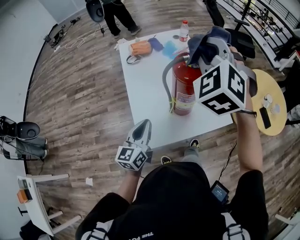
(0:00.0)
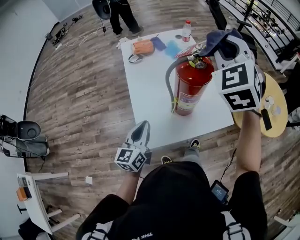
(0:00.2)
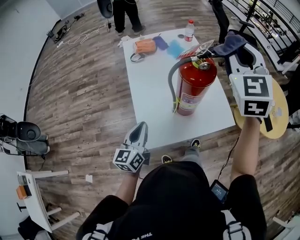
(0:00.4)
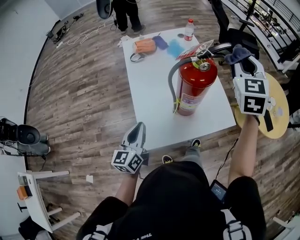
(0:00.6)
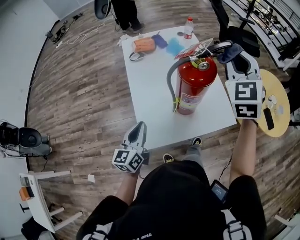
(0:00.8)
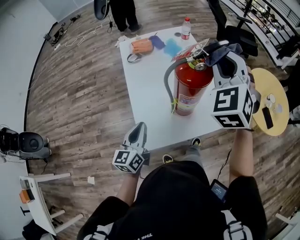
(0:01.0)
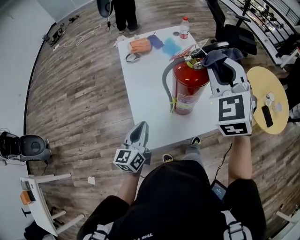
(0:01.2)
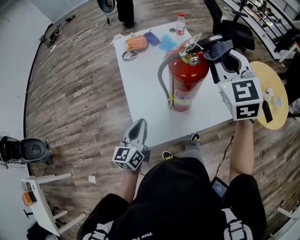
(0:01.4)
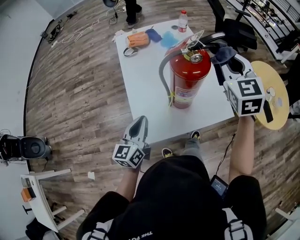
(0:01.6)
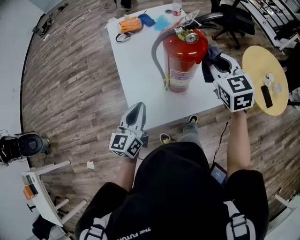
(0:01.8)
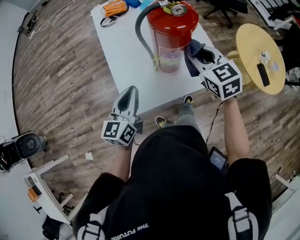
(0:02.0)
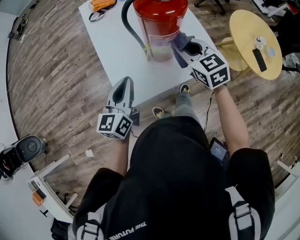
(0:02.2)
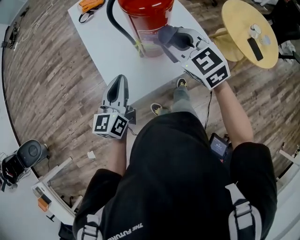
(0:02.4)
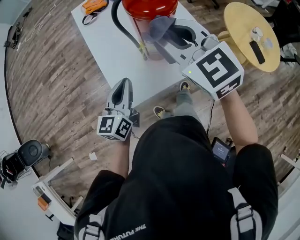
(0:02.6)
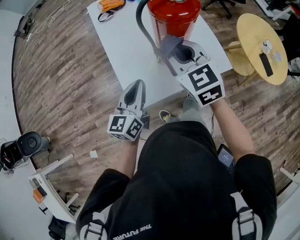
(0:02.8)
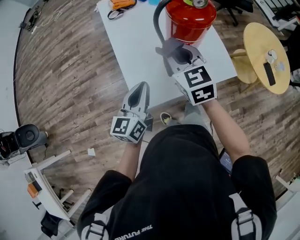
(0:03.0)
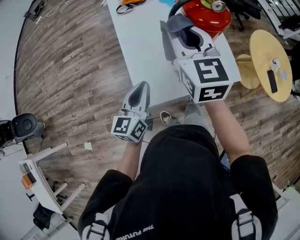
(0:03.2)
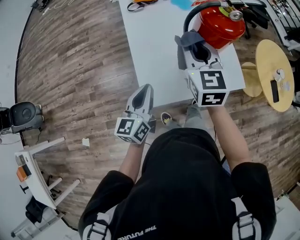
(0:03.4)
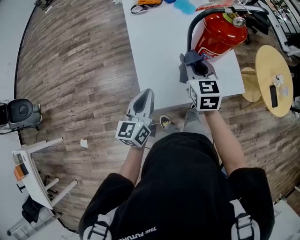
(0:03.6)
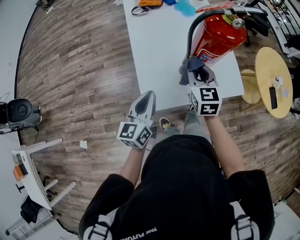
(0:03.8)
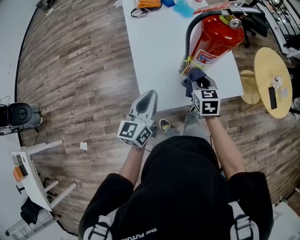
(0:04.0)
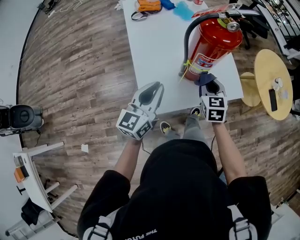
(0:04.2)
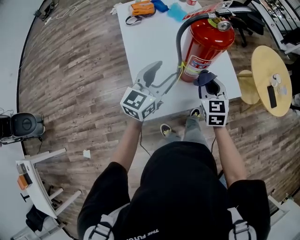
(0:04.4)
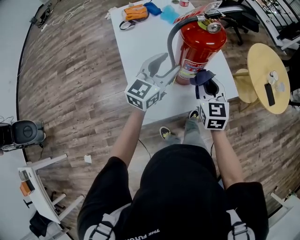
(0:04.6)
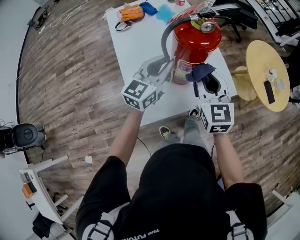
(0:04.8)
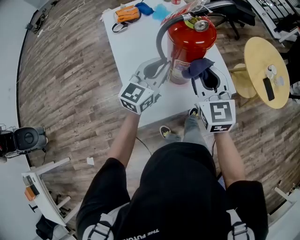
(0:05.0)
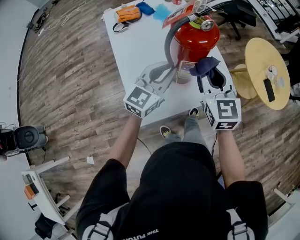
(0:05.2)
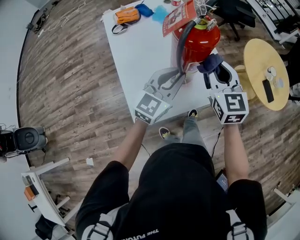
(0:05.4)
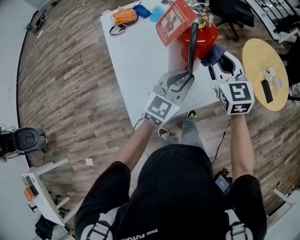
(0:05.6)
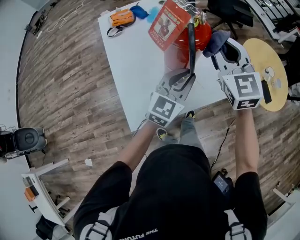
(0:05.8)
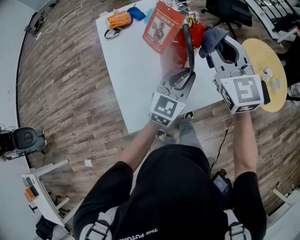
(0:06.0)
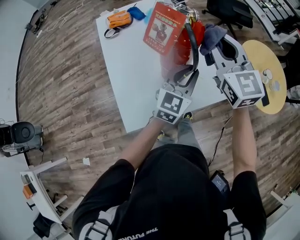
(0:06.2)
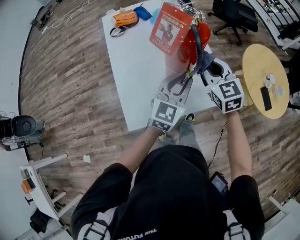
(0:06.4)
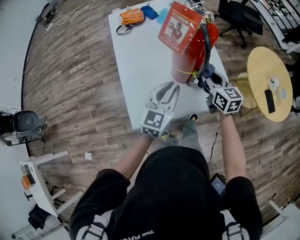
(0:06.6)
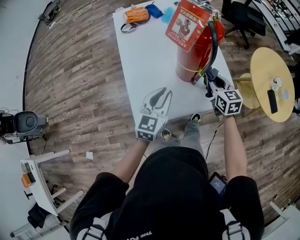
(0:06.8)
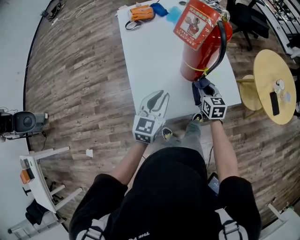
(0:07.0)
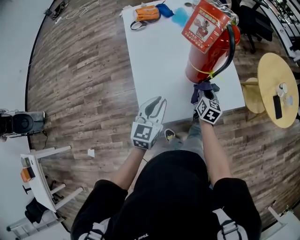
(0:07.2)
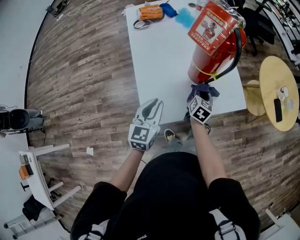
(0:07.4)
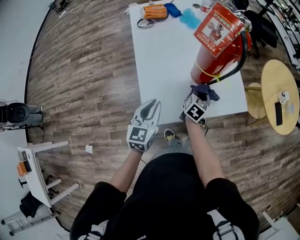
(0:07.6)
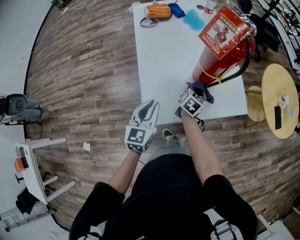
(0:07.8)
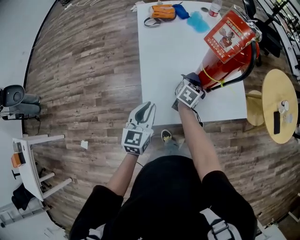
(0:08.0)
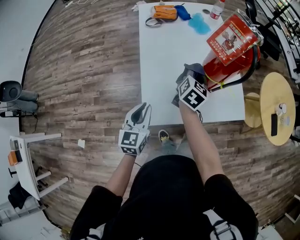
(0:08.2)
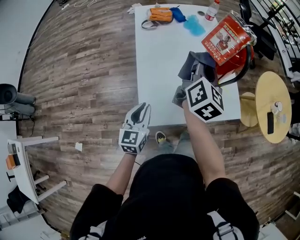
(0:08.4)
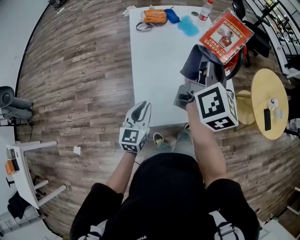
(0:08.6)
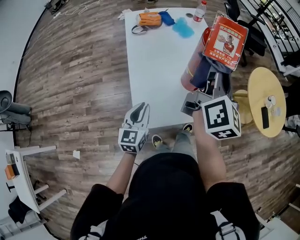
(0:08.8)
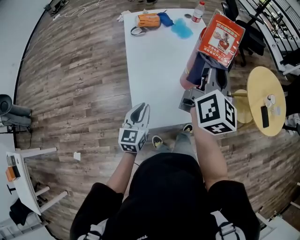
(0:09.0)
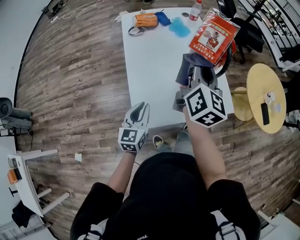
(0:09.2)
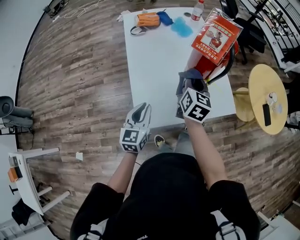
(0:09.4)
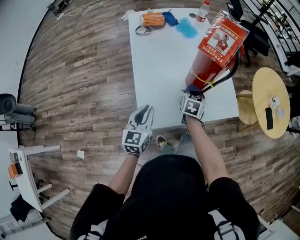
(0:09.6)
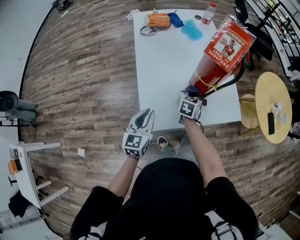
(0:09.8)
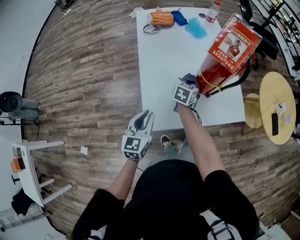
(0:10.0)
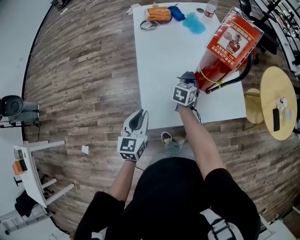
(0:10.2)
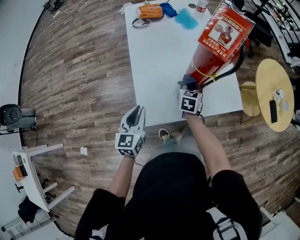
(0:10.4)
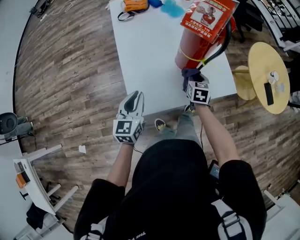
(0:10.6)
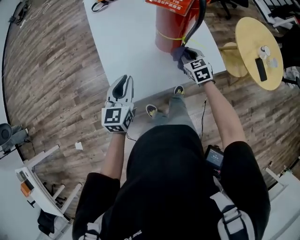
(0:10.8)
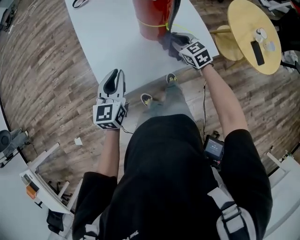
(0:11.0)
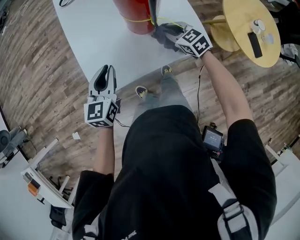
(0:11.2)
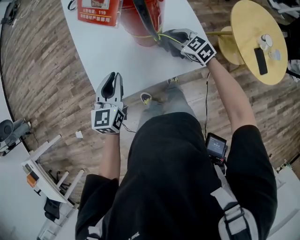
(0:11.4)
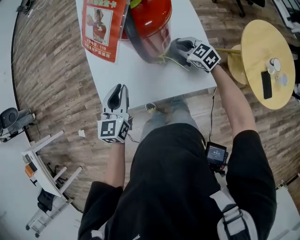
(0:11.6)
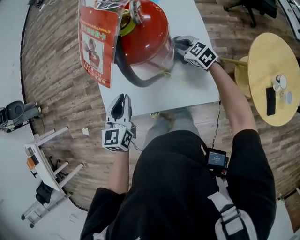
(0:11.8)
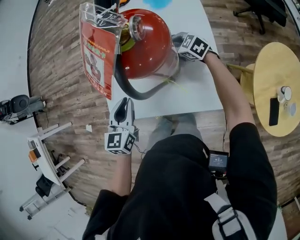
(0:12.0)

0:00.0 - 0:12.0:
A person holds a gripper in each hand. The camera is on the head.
0:00.0 - 0:01.6: The right gripper goes left and right, roughly 15 cm each way, reversing 2 times, and changes its angle by approximately 40 degrees.
0:01.6 - 0:03.0: The right gripper goes up and down, about 20 cm each way, reversing 2 times.
0:03.0 - 0:04.4: The right gripper moves up and down over approximately 25 cm, changing direction 2 times. The left gripper travels forward by roughly 10 cm, changes its angle by about 20 degrees, and opens its fingers.
0:04.4 - 0:06.0: The right gripper goes some 25 cm upward and forward, and swivels about 30 degrees, while the left gripper is displaced to the right and forward by some 20 cm, and closes.
0:06.0 - 0:07.6: The right gripper shifts about 35 cm downward, and turns by about 60 degrees, while the left gripper is displaced to the left, backward and downward by roughly 30 cm, and swivels roughly 30 degrees.
0:07.6 - 0:09.0: The right gripper heads upward, covering approximately 35 cm, and tips its fingers upward by roughly 40 degrees.
0:09.0 - 0:10.4: The right gripper moves downward, some 35 cm, and points its fingers about 50 degrees further downward.
0:10.4 - 0:12.0: The left gripper shifts by about 20 cm. The right gripper ends up approximately 20 cm from where it was, and swivels some 70 degrees.

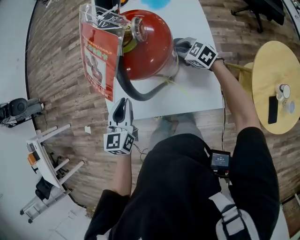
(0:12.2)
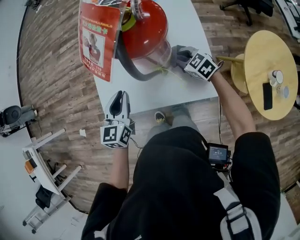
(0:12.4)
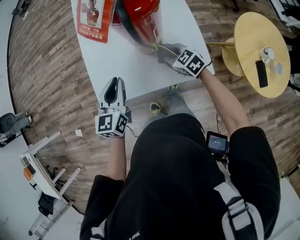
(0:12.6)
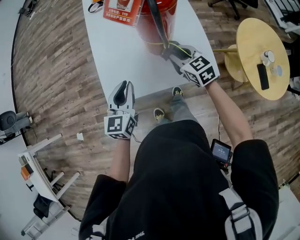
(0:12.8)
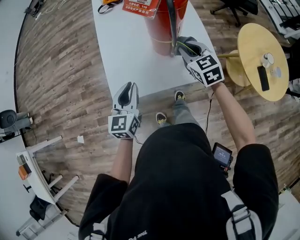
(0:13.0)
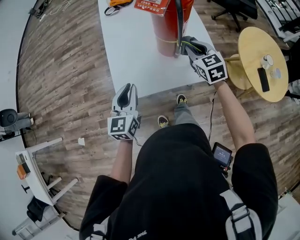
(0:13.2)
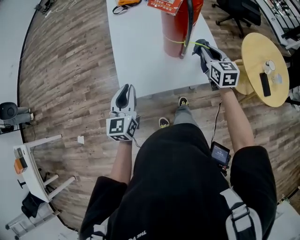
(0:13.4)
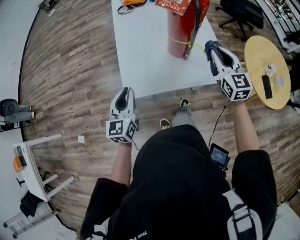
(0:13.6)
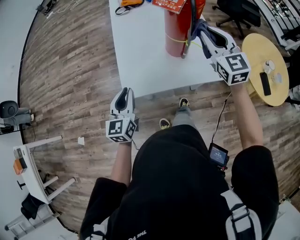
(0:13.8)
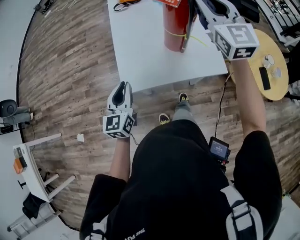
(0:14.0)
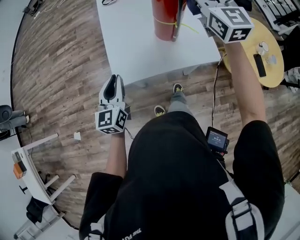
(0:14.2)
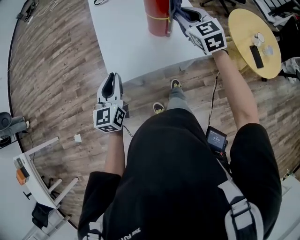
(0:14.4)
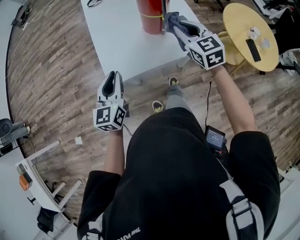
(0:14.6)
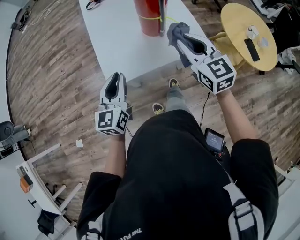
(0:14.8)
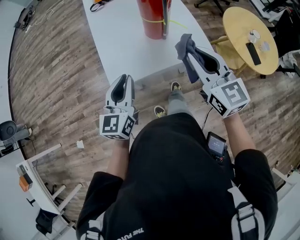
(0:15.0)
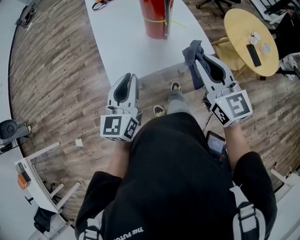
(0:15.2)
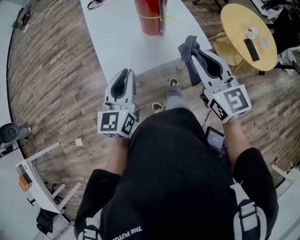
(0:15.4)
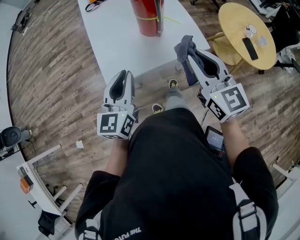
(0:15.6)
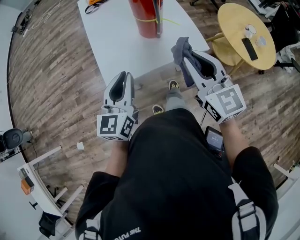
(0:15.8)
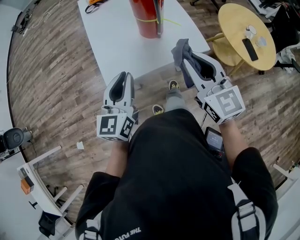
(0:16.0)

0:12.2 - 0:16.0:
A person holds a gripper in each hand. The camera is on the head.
0:12.2 - 0:13.4: The left gripper shifts by roughly 15 cm, while the right gripper moves approximately 25 cm, and turns by roughly 50 degrees.
0:13.4 - 0:14.8: The right gripper heads backward, upward and to the left, covering roughly 20 cm.
0:14.8 - 0:16.0: The right gripper moves backward, some 10 cm. The left gripper heads upward, covering roughly 5 cm.

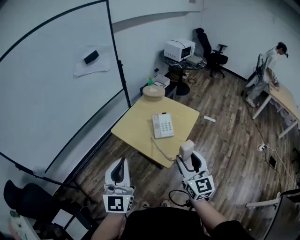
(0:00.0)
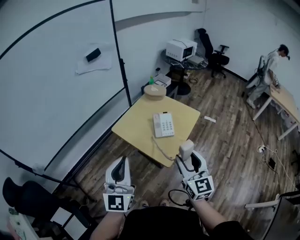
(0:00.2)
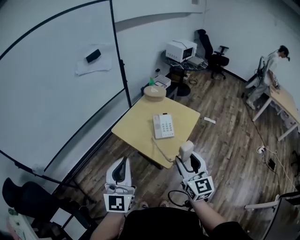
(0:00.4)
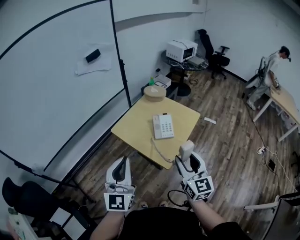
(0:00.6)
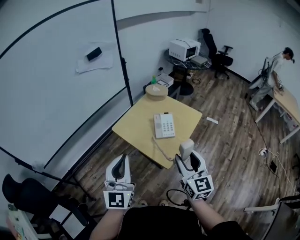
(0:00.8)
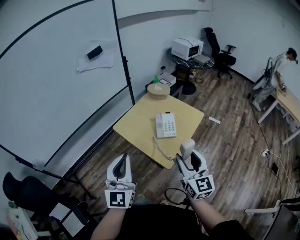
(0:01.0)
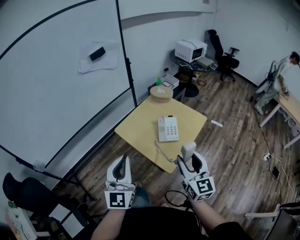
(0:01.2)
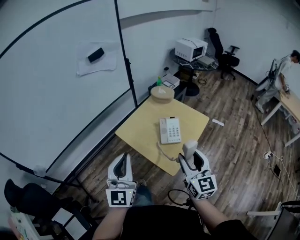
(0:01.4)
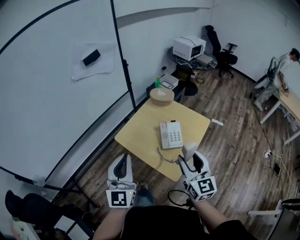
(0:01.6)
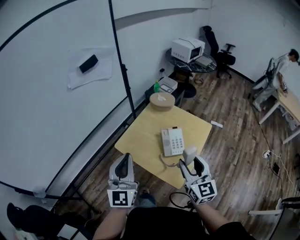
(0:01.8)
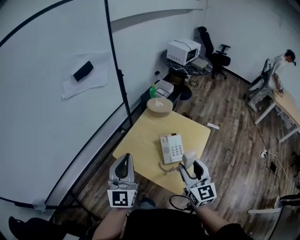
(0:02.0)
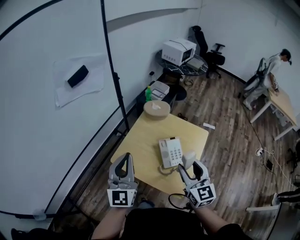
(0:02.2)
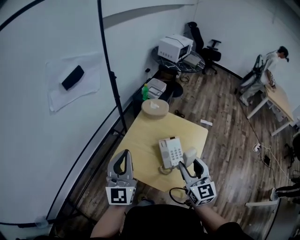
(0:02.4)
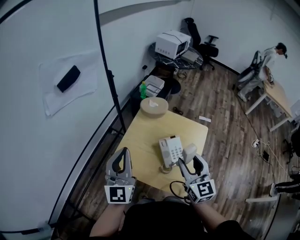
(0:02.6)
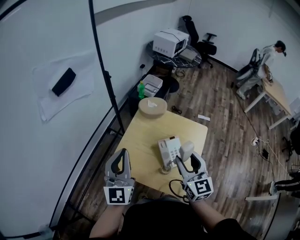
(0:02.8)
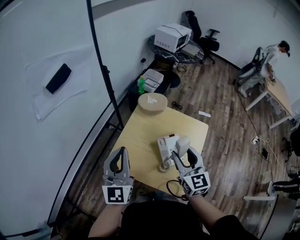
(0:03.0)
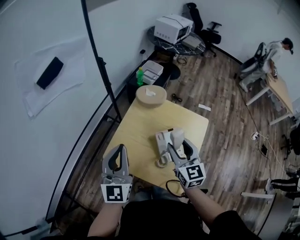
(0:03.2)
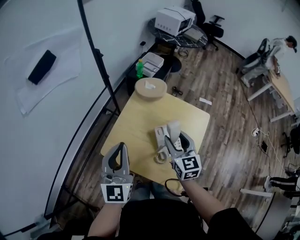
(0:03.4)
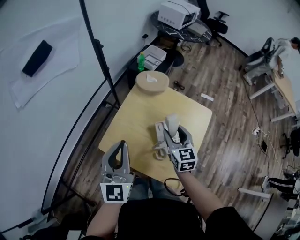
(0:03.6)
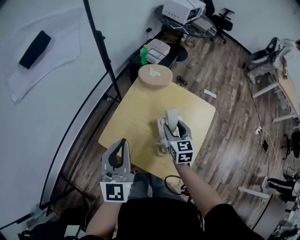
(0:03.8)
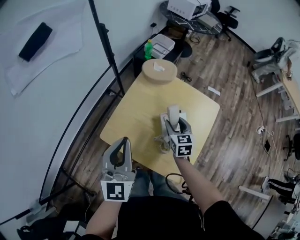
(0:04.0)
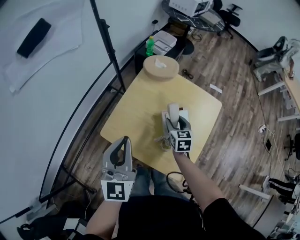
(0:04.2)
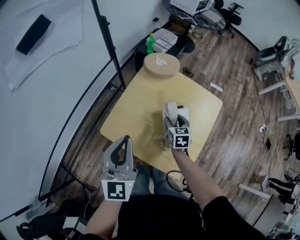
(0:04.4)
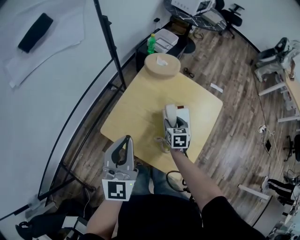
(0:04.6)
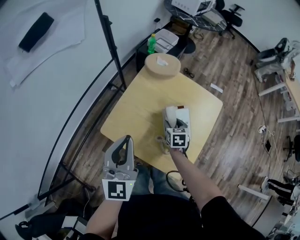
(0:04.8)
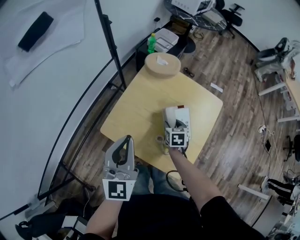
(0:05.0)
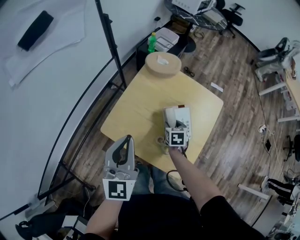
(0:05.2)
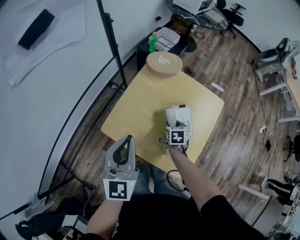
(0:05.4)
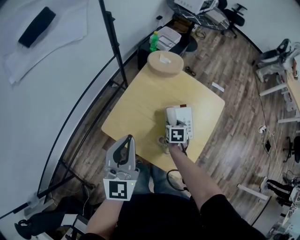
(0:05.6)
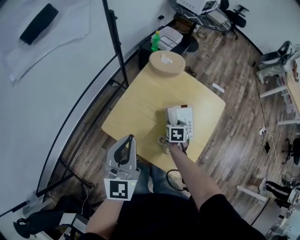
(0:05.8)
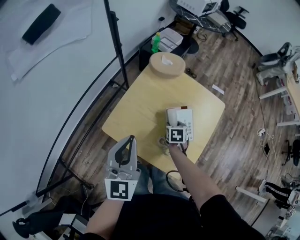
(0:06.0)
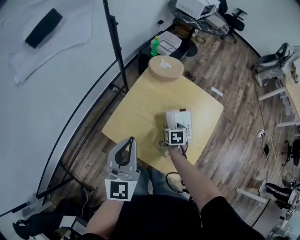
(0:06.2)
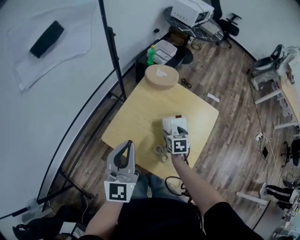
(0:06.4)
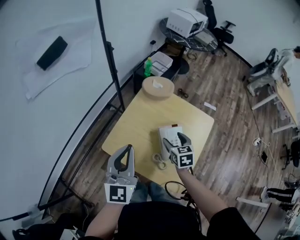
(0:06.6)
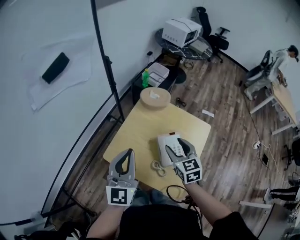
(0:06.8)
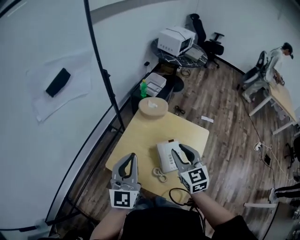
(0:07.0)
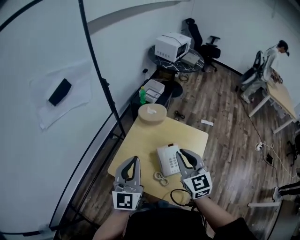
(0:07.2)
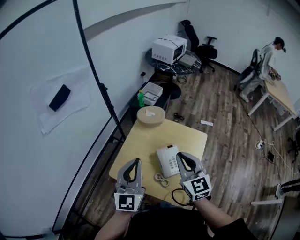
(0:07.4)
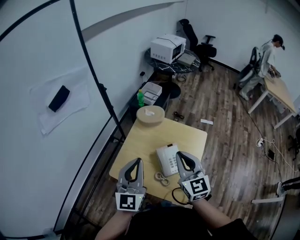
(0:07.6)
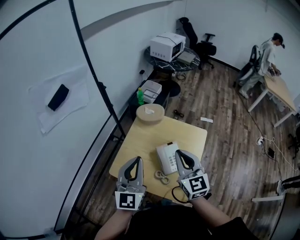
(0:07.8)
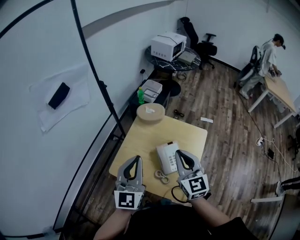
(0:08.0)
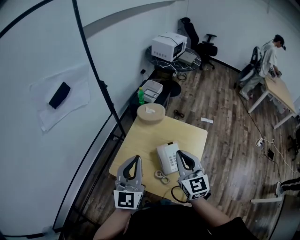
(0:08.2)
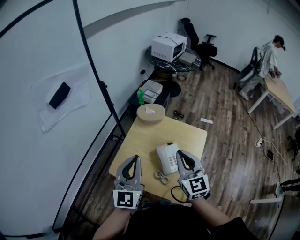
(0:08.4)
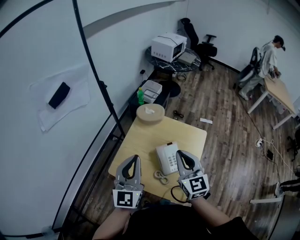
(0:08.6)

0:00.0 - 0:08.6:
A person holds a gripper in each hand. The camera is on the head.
0:00.0 - 0:01.4: The two grippers go roughly 10 cm forward.
0:01.4 - 0:02.8: The two grippers go roughly 30 cm forward.
0:02.8 - 0:04.4: The left gripper goes approximately 10 cm downward, while the right gripper shifts roughly 30 cm downward and forward, and tilts its fingers about 30 degrees downward.
0:04.4 - 0:05.8: The right gripper is displaced downward by some 5 cm.
0:05.8 - 0:07.2: The left gripper moves upward, about 10 cm; the right gripper goes some 35 cm upward, tilts its fingers some 40 degrees upward, and closes up.
0:07.2 - 0:08.6: There are only small adjustments of the grippers.
